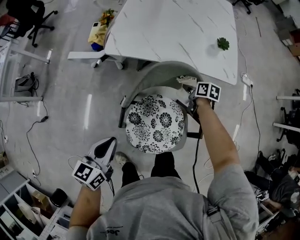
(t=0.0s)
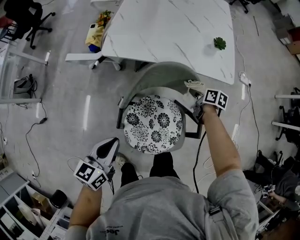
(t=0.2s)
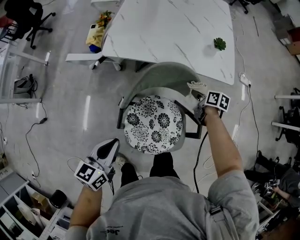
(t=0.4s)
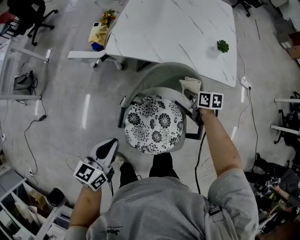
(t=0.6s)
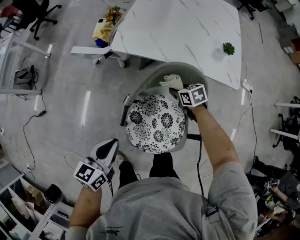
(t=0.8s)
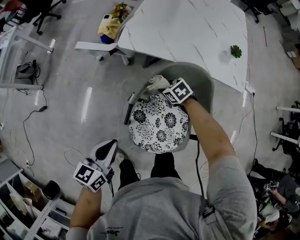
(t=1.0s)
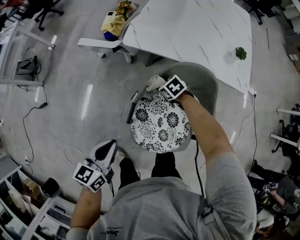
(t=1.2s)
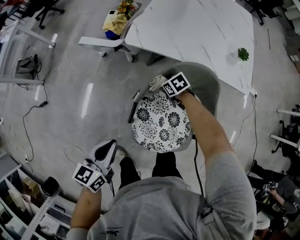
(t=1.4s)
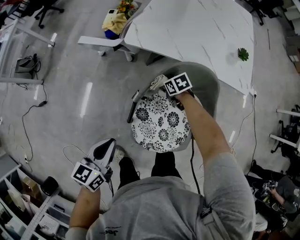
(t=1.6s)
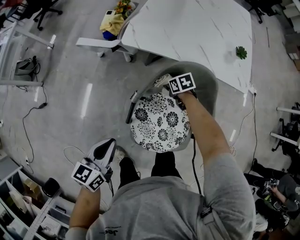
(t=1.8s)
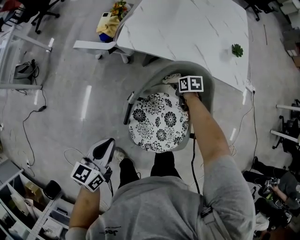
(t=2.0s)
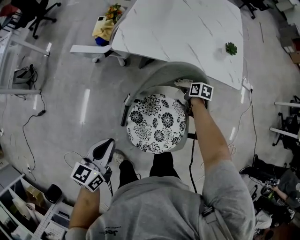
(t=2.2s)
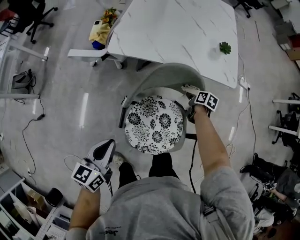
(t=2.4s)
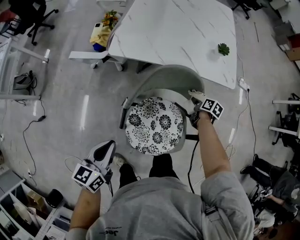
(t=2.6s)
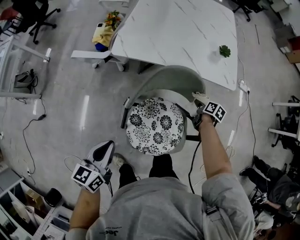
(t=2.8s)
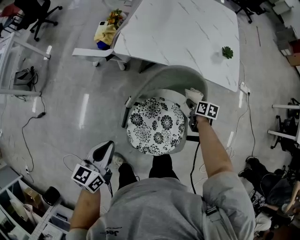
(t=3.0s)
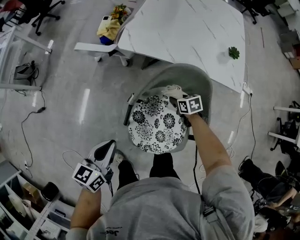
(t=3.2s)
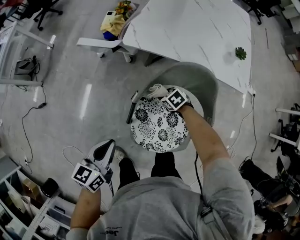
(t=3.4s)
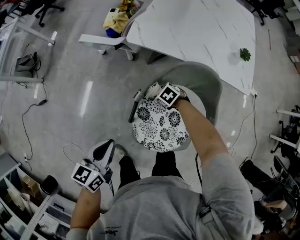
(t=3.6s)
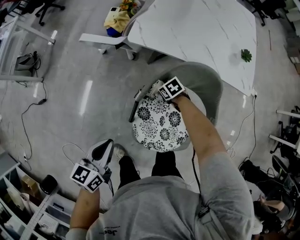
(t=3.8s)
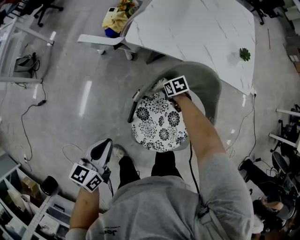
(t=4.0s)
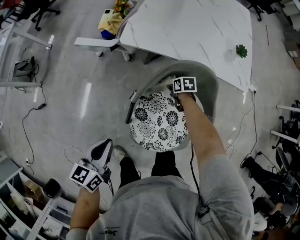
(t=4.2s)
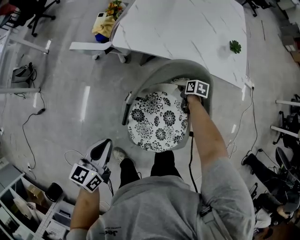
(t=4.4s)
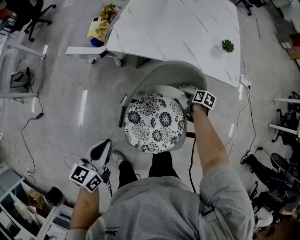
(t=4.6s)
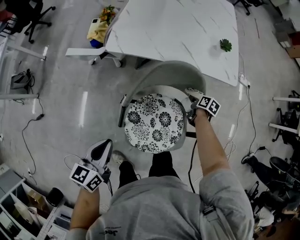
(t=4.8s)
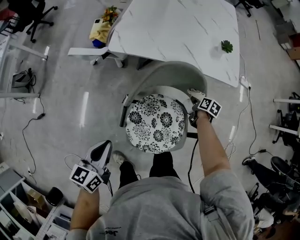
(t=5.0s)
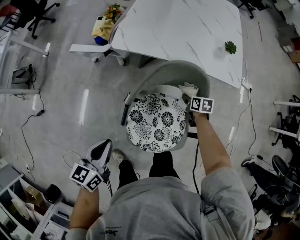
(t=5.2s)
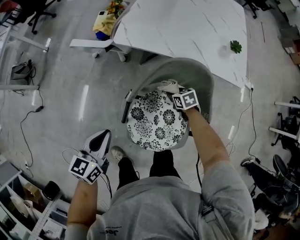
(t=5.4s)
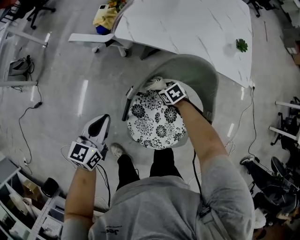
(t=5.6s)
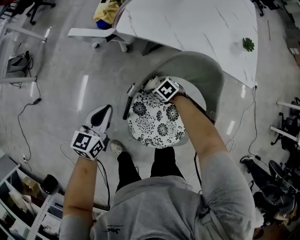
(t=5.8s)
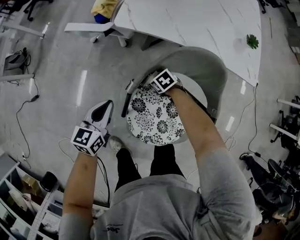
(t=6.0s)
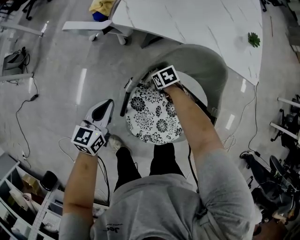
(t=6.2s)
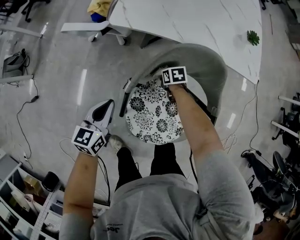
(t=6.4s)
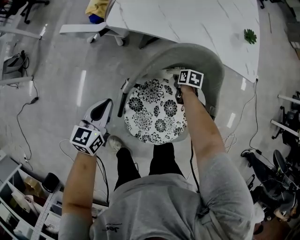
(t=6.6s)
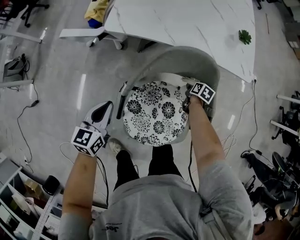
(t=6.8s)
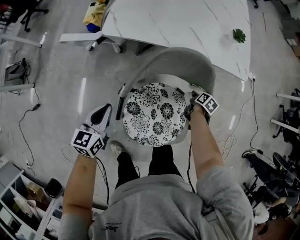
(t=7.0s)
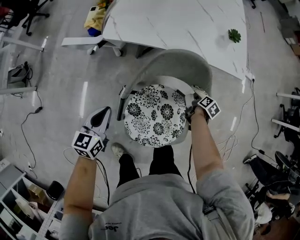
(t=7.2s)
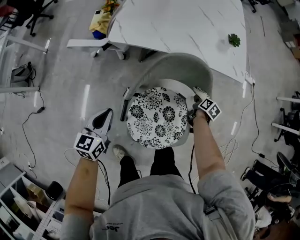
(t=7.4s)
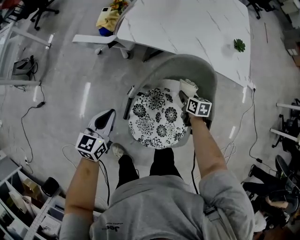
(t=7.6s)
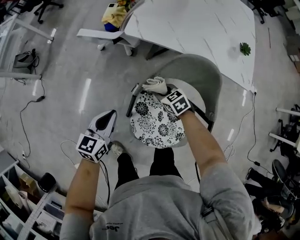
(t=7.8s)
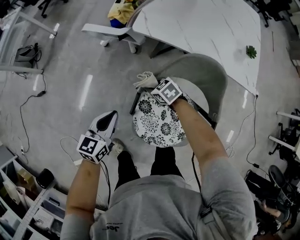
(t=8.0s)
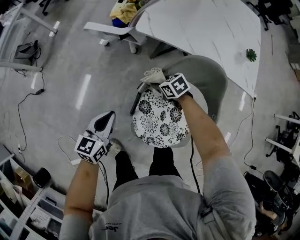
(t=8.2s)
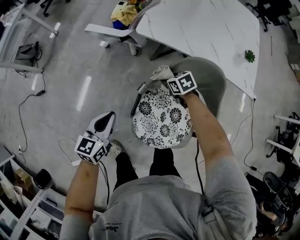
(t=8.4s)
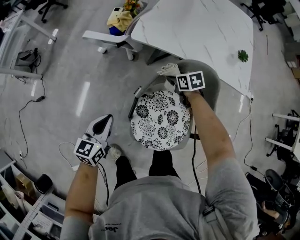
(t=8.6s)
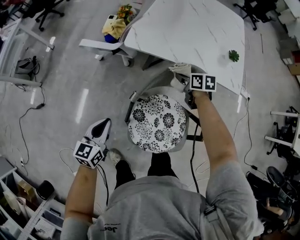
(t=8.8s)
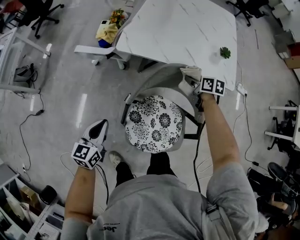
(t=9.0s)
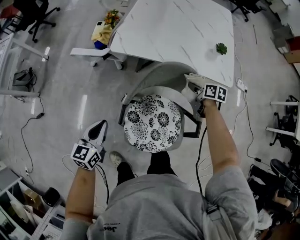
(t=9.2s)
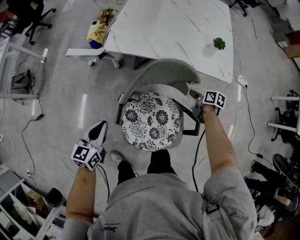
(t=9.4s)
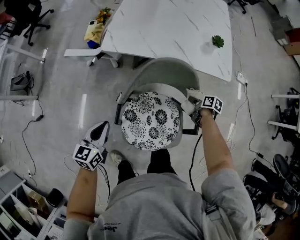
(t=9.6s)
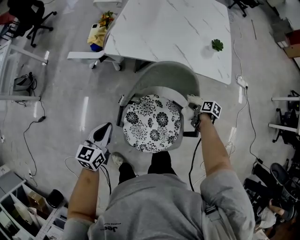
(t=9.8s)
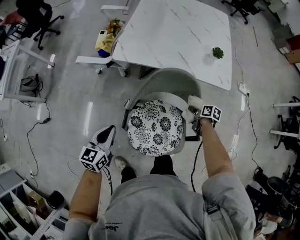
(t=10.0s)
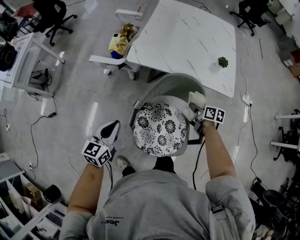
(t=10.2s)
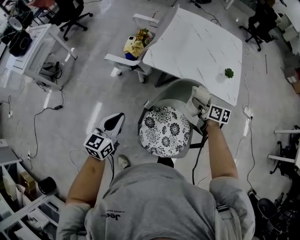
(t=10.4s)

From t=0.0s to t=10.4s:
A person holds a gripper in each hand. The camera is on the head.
From t=0.0s to t=1.4s: The right gripper changes place by some 25 cm, and rolls counterclockwise, seen from behind, by approximately 50 degrees. The left gripper changes place by approximately 5 cm.
From t=1.4s to t=3.0s: The right gripper moves approximately 25 cm, and twists roughly 50 degrees clockwise, seen from behind.
From t=4.4s to t=6.0s: The right gripper ends up some 20 cm from where it was, and rotates around the line of its fingers by about 50 degrees, counterclockwise from behind; the left gripper shifts roughly 10 cm downward.
From t=6.0s to t=7.4s: The right gripper shifts by some 30 cm, and rolls clockwise, seen from behind, by approximately 80 degrees.
From t=7.4s to t=9.0s: The right gripper goes roughly 20 cm upward, and changes its angle by some 40 degrees; the left gripper shifts by approximately 5 cm.
From t=9.0s to t=10.4s: The right gripper travels upward and backward by roughly 15 cm; the left gripper goes some 15 cm upward.

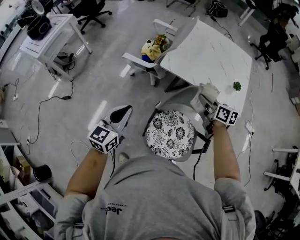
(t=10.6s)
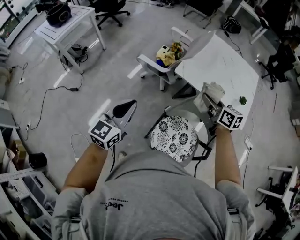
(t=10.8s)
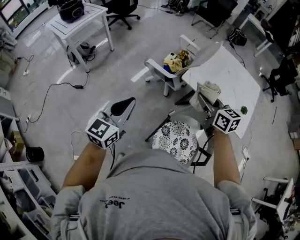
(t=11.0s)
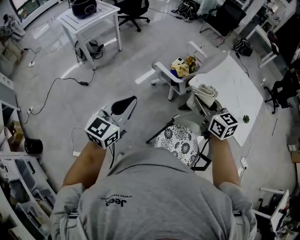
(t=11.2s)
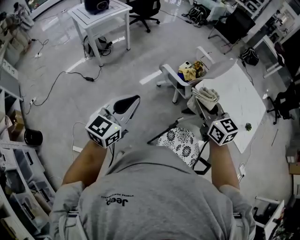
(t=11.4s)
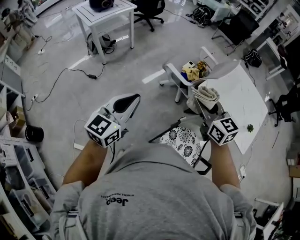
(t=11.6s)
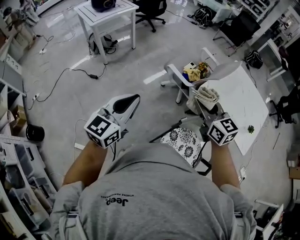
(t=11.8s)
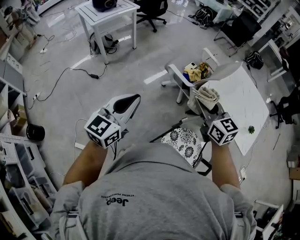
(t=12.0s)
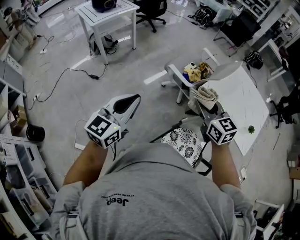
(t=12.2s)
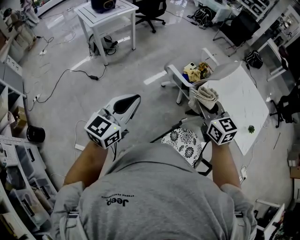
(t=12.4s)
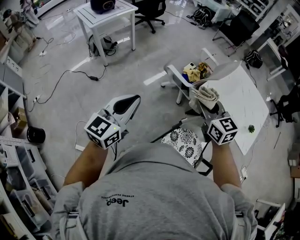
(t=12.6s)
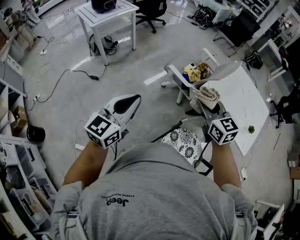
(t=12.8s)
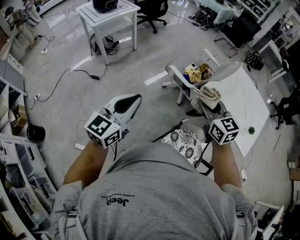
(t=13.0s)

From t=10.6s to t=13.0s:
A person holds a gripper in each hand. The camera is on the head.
From t=10.6s to t=11.8s: The right gripper moves to the left and upward, roughly 35 cm, and rolls counterclockwise, seen from behind, by about 40 degrees; the left gripper goes roughly 25 cm to the left and upward, and swivels approximately 20 degrees.
From t=11.8s to t=13.0s: The grippers make only small movements.

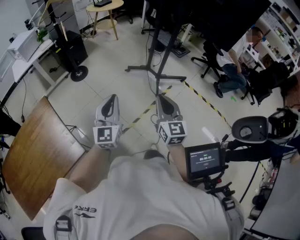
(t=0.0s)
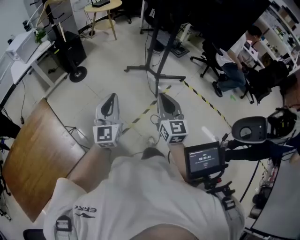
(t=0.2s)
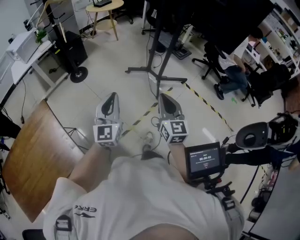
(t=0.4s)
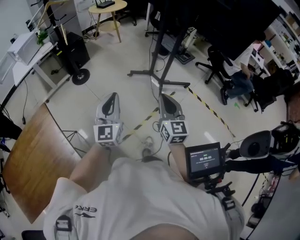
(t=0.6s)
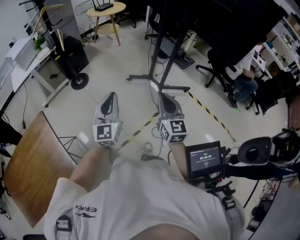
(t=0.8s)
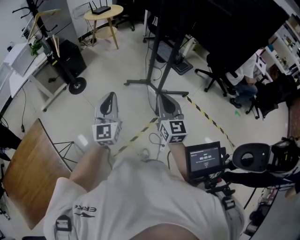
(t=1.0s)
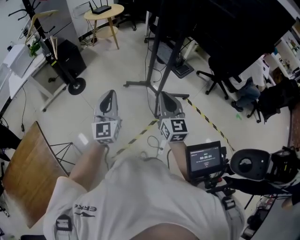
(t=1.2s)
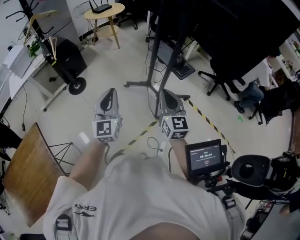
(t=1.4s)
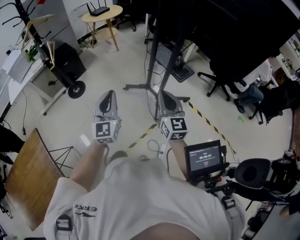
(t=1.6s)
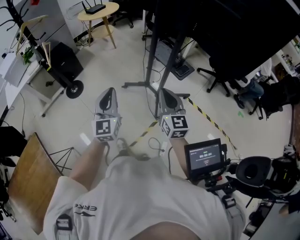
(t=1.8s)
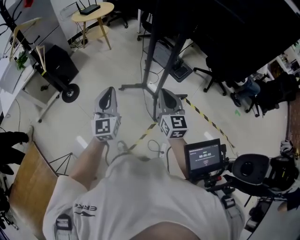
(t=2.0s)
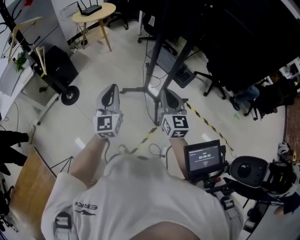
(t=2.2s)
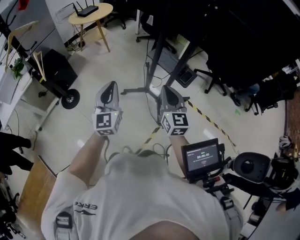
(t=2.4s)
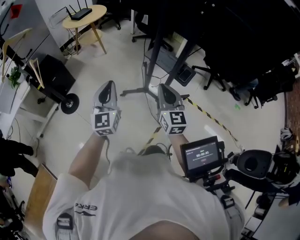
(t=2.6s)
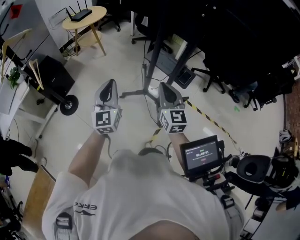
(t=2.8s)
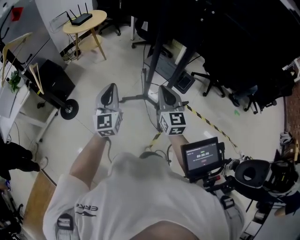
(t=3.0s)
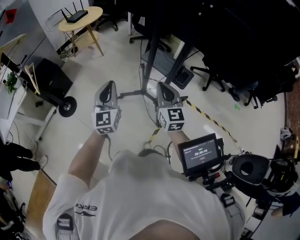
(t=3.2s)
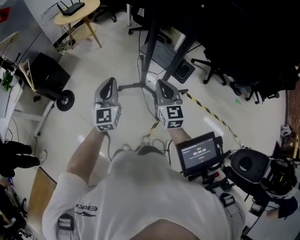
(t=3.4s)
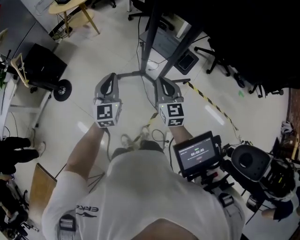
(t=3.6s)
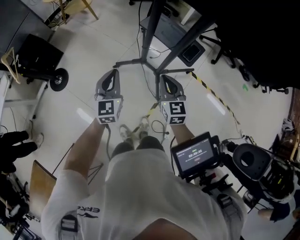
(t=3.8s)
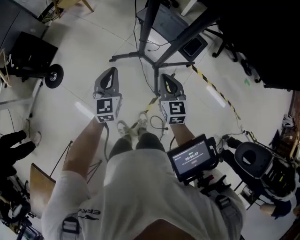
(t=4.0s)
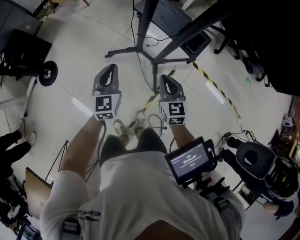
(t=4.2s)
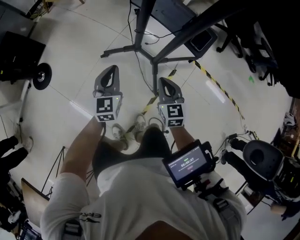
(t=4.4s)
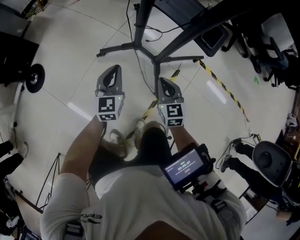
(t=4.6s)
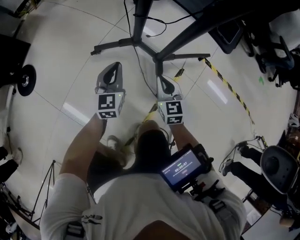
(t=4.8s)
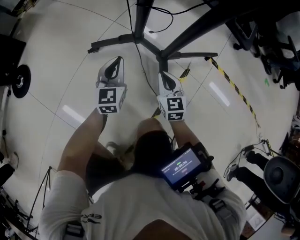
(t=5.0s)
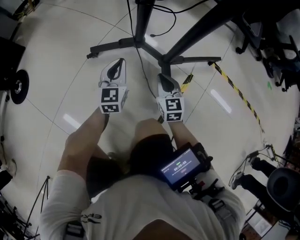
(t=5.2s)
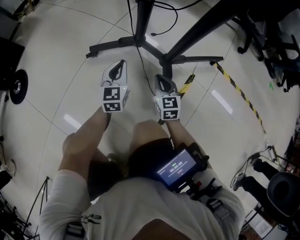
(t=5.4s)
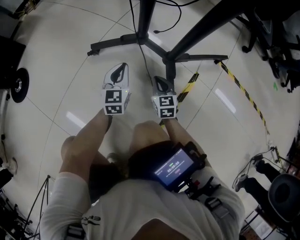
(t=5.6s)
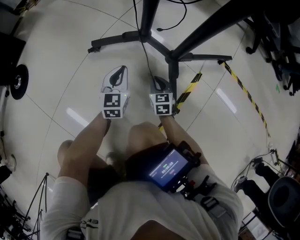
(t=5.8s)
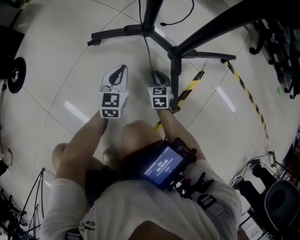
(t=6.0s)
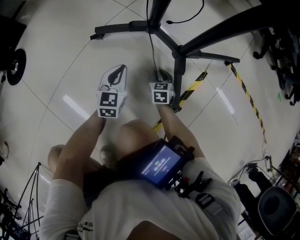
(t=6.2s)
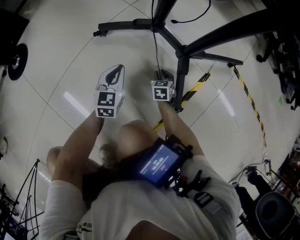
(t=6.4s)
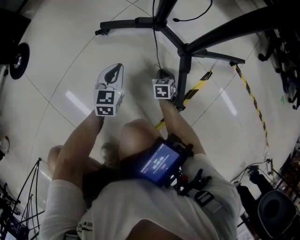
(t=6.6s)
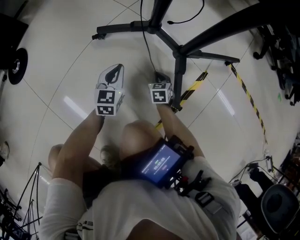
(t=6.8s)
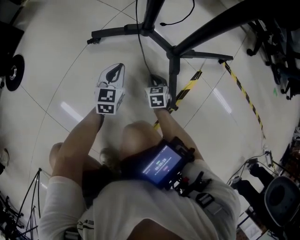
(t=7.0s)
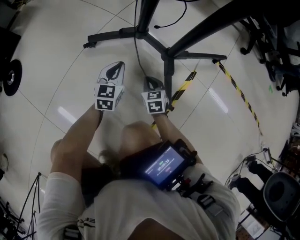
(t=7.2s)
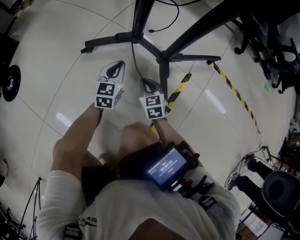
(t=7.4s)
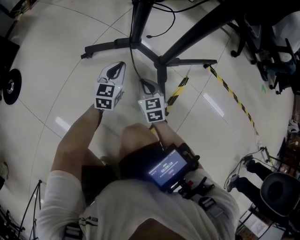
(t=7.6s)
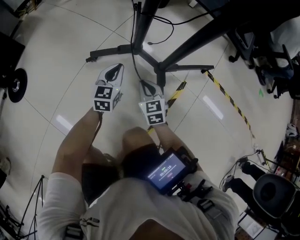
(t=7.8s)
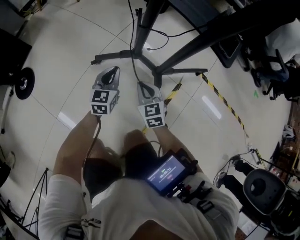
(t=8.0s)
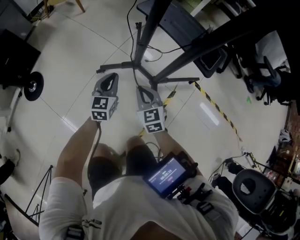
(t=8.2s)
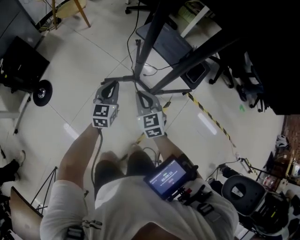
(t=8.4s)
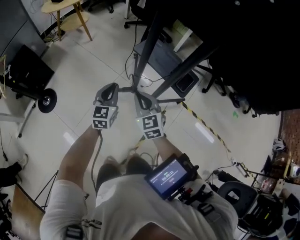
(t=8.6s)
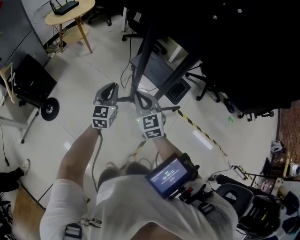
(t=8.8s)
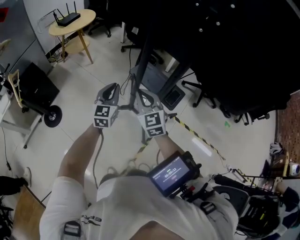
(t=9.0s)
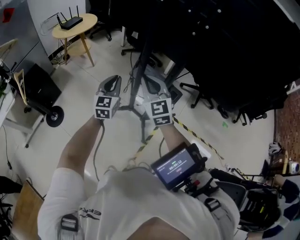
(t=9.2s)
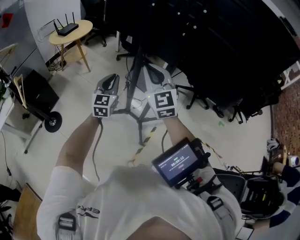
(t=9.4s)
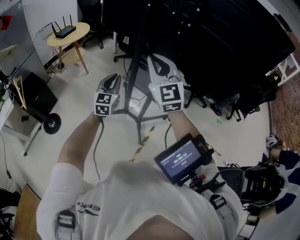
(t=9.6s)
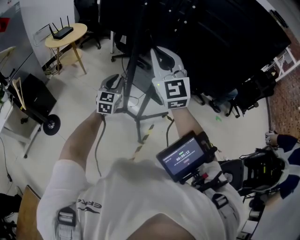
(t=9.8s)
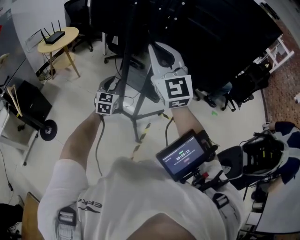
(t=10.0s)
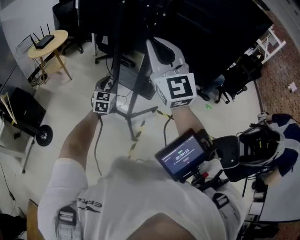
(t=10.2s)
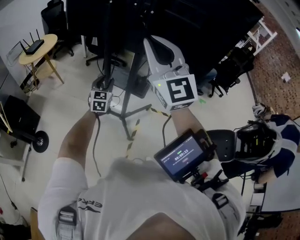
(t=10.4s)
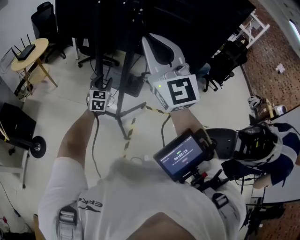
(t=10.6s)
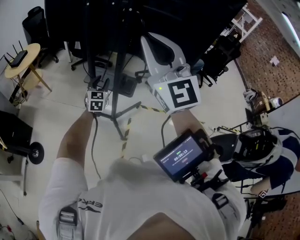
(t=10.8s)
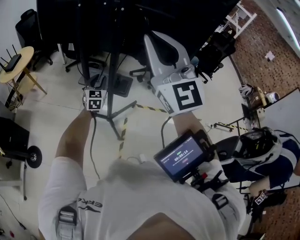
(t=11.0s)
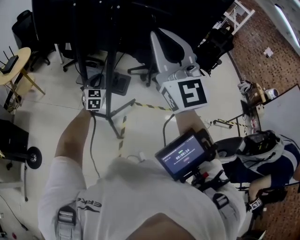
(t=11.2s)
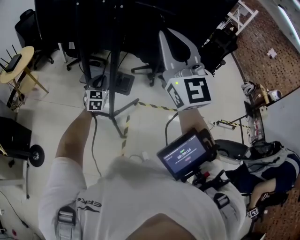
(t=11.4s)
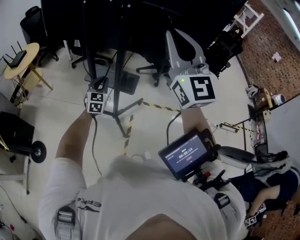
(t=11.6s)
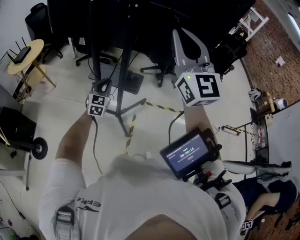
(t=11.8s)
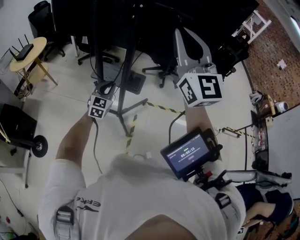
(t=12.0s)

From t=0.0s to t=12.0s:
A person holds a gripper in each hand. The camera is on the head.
From t=0.0s to t=1.6s: The right gripper moves forward and to the right, approximately 35 cm. Meanwhile the left gripper goes about 30 cm forward.
From t=1.6s to t=3.0s: The right gripper goes some 20 cm forward and to the left. Meanwhile the left gripper heads forward, covering roughly 25 cm.
From t=3.0s to t=4.4s: The two grippers go some 40 cm downward. The right gripper turns by roughly 20 degrees; the left gripper swivels roughly 20 degrees.
From t=4.4s to t=6.0s: Both grippers move downward, roughly 50 cm.
From t=6.0s to t=7.6s: The right gripper goes about 10 cm upward. The left gripper moves roughly 5 cm.
From t=7.6s to t=9.0s: Both grippers travel together upward, about 70 cm. The right gripper rotates approximately 20 degrees.
From t=9.0s to t=10.4s: The right gripper heads upward, covering some 35 cm, and changes its angle by some 30 degrees. Meanwhile the left gripper is displaced to the right by some 10 cm, and opens up.
From t=10.4s to t=12.0s: The grippers both shift to the right by approximately 10 cm. The left gripper closes its fingers.
